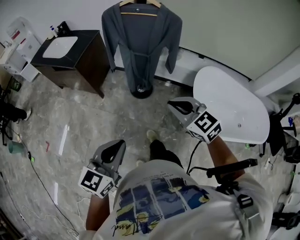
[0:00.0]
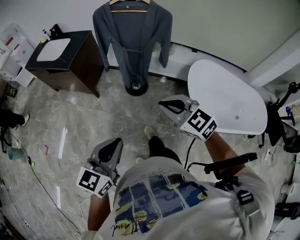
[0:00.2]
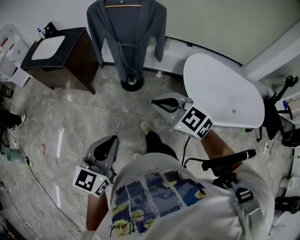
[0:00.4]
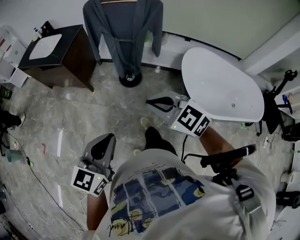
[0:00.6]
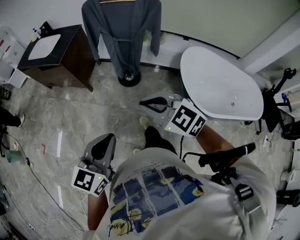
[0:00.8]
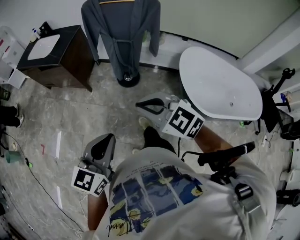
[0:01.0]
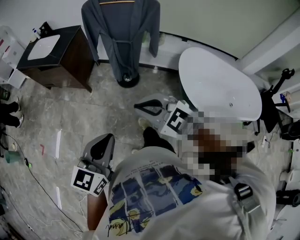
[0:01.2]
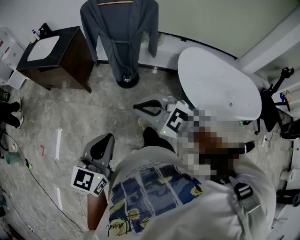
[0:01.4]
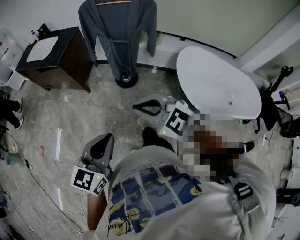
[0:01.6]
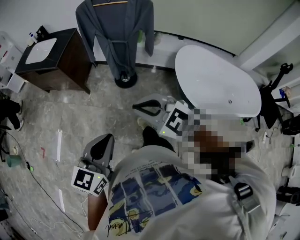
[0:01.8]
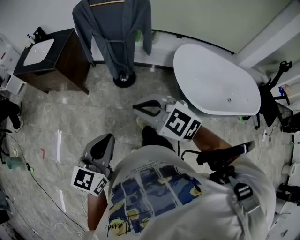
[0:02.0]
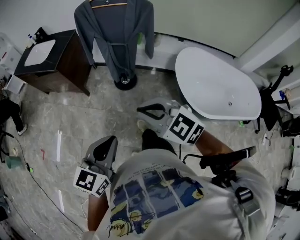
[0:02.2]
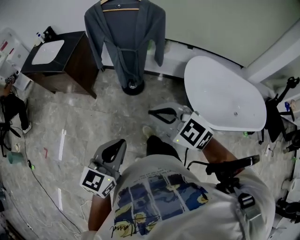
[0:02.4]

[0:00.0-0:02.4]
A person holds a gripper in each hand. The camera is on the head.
0.0 to 1.2 s: The right gripper goes about 10 cm to the left and backward.
1.2 to 2.4 s: The right gripper shifts approximately 5 cm to the right, while the left gripper moves approximately 5 cm.

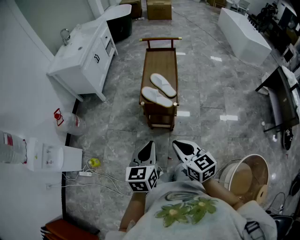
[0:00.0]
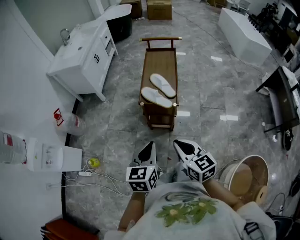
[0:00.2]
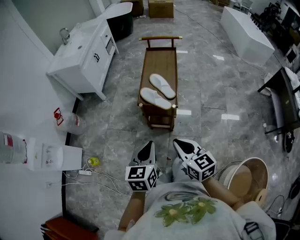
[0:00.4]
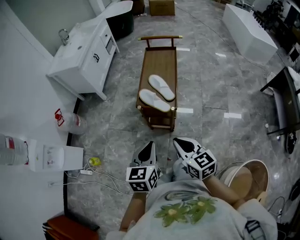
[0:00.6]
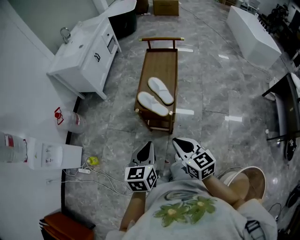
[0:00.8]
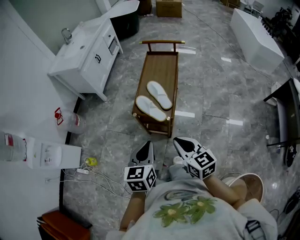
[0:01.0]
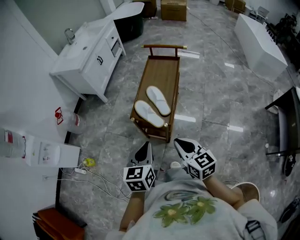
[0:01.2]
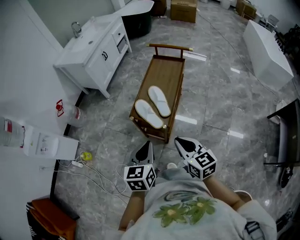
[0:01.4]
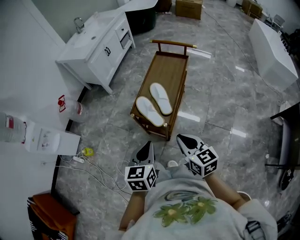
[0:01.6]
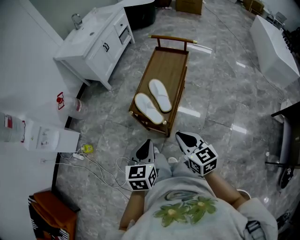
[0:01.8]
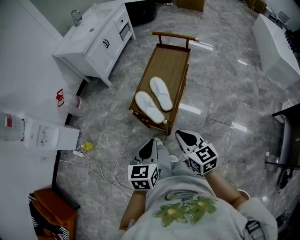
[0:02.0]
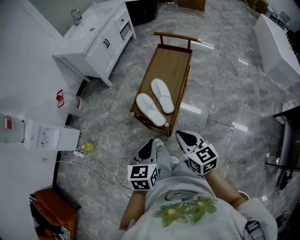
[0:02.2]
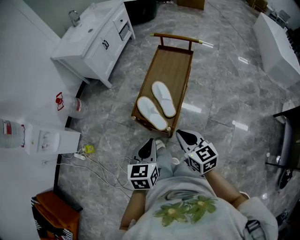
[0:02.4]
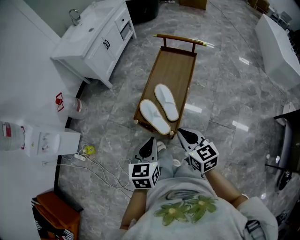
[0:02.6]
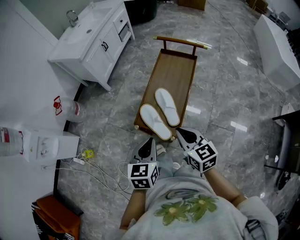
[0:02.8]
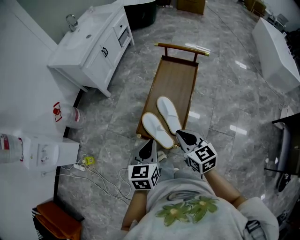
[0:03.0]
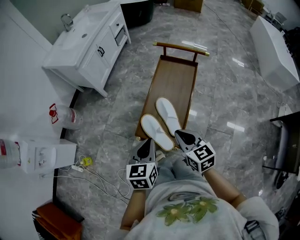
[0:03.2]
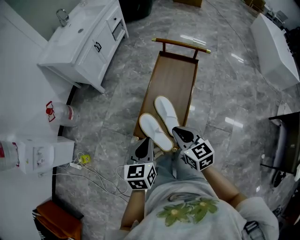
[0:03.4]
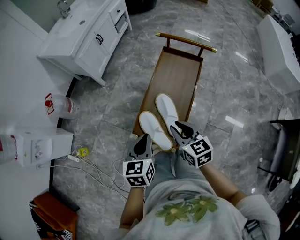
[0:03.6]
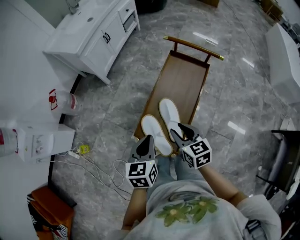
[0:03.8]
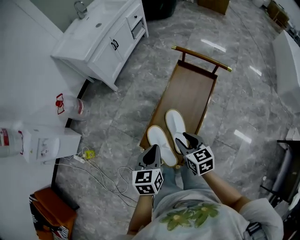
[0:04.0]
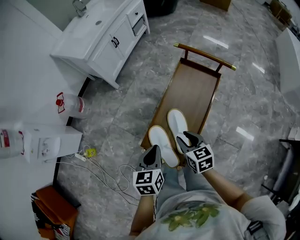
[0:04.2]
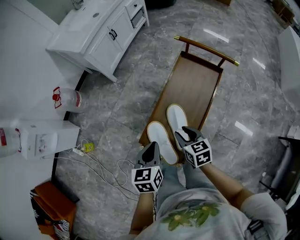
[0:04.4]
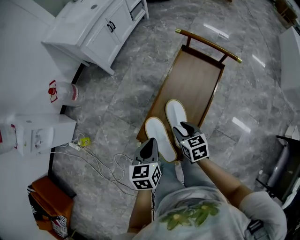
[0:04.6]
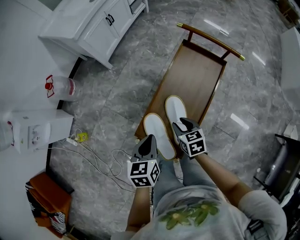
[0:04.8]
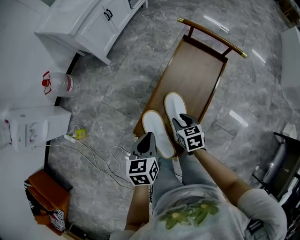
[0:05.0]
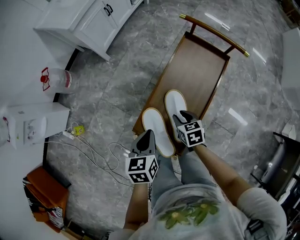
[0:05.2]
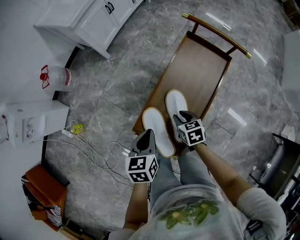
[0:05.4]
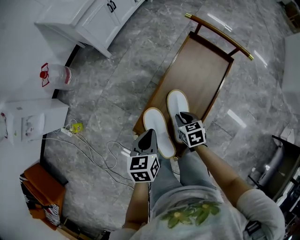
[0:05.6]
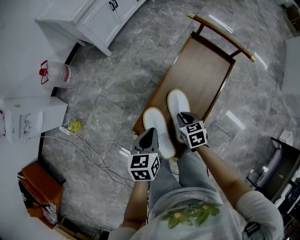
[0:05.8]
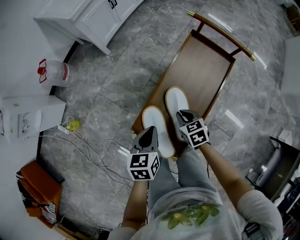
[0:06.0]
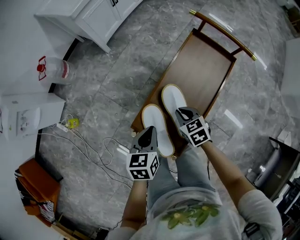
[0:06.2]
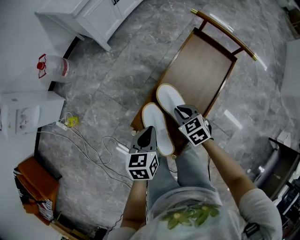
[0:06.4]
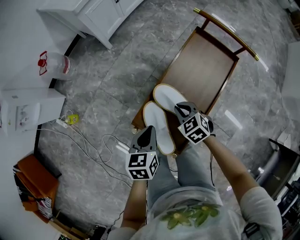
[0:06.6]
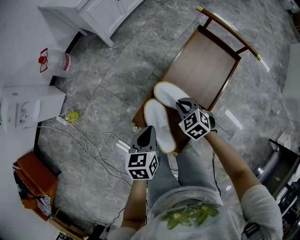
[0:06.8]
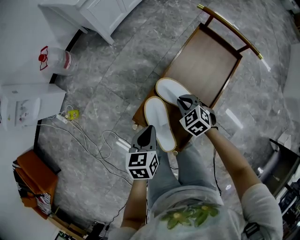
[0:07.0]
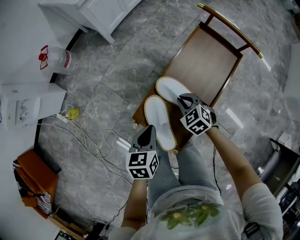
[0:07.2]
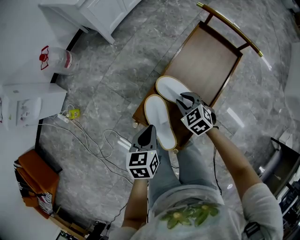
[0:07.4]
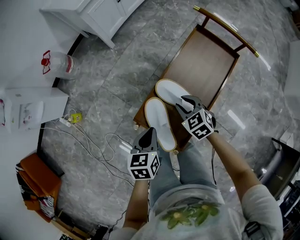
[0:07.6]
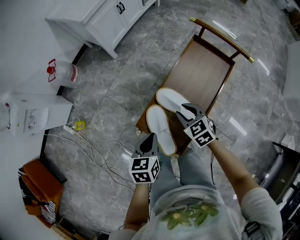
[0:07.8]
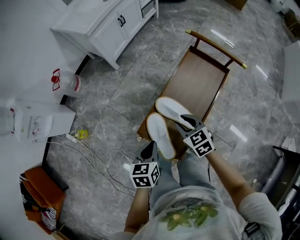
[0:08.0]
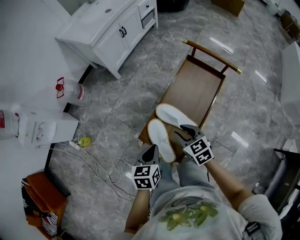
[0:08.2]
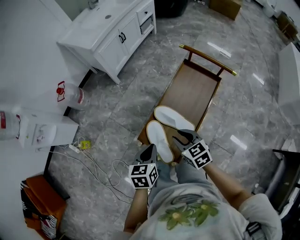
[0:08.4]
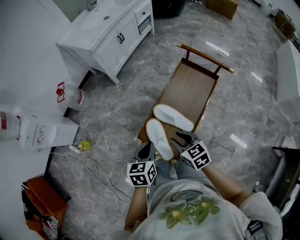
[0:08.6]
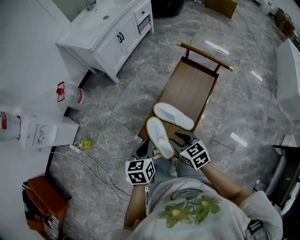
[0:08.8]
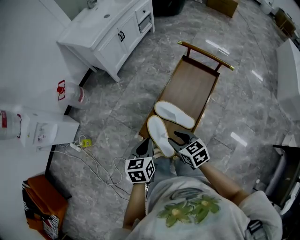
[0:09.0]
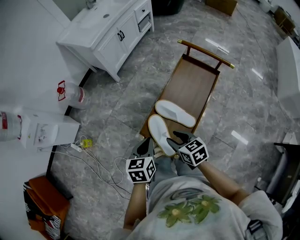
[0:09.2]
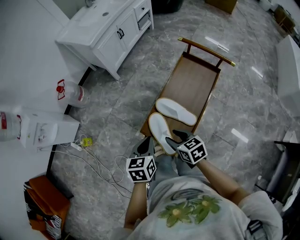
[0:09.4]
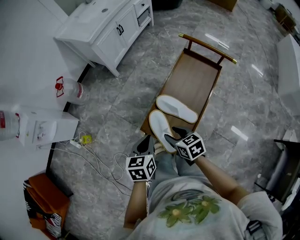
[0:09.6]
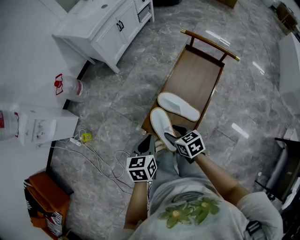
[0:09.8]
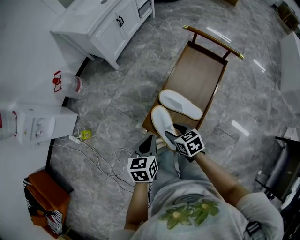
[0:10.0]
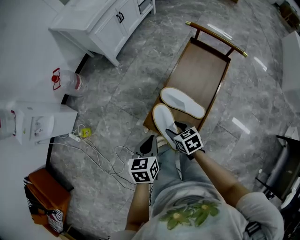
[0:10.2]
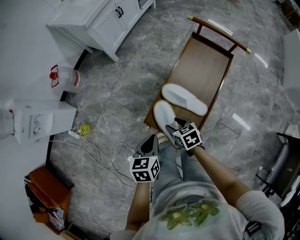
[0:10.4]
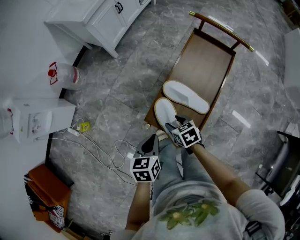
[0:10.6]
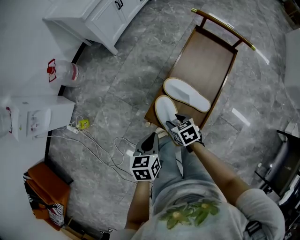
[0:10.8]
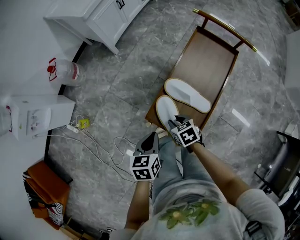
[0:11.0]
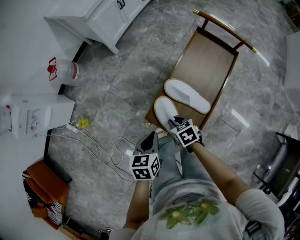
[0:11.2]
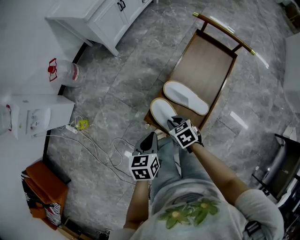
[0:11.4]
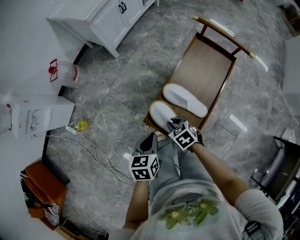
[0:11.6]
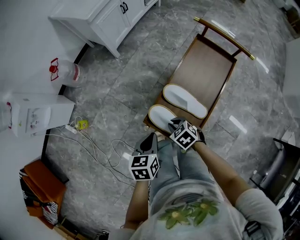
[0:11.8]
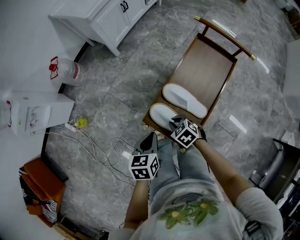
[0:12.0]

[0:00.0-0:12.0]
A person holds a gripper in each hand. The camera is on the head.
0.0 to 1.6 s: The grippers both shift to the right and forward by roughly 20 cm.
1.6 to 3.0 s: The two grippers go approximately 20 cm forward.
3.0 to 4.4 s: The right gripper moves downward and forward, approximately 20 cm, and opens its fingers. The left gripper moves forward and downward, about 15 cm.
4.4 to 6.0 s: The grippers both shift downward by some 10 cm. The right gripper closes its fingers.
6.0 to 7.6 s: The right gripper turns by some 20 degrees, and opens its fingers.
7.6 to 9.0 s: The left gripper moves upward, approximately 10 cm; the right gripper heads upward and backward, covering about 15 cm, and turns by some 30 degrees.
9.0 to 10.4 s: The right gripper heads downward, covering roughly 15 cm. Meanwhile the left gripper is displaced downward by about 5 cm.
10.4 to 12.0 s: The right gripper rotates roughly 30 degrees, and closes up.

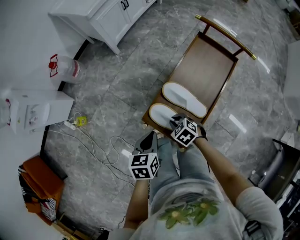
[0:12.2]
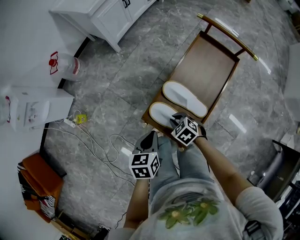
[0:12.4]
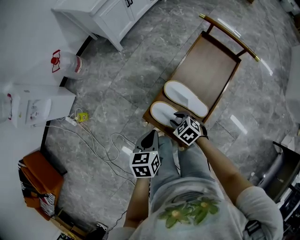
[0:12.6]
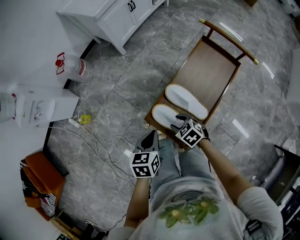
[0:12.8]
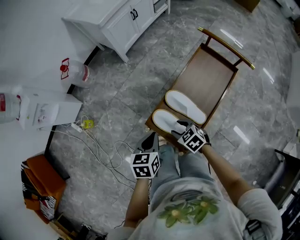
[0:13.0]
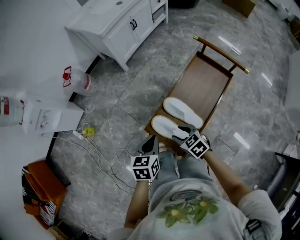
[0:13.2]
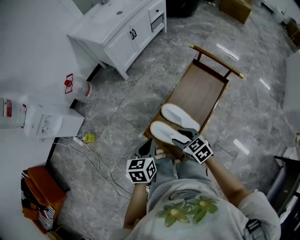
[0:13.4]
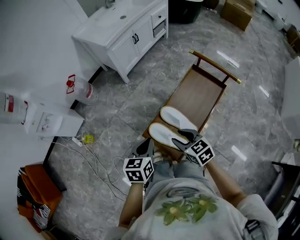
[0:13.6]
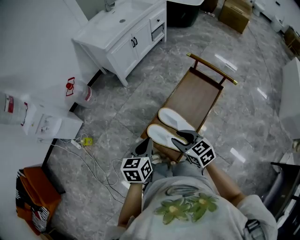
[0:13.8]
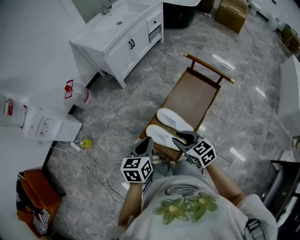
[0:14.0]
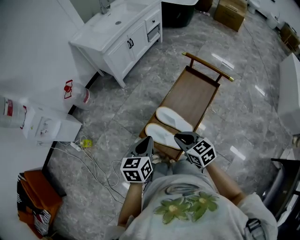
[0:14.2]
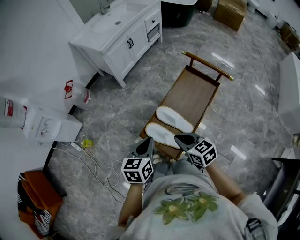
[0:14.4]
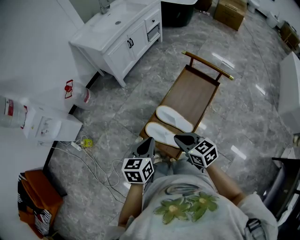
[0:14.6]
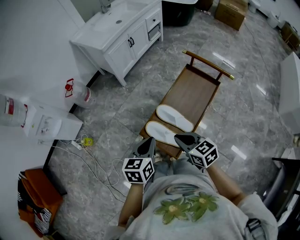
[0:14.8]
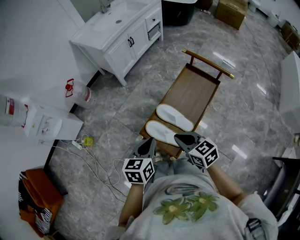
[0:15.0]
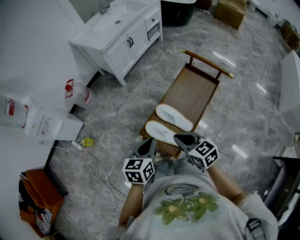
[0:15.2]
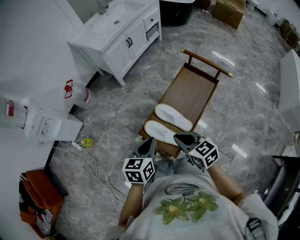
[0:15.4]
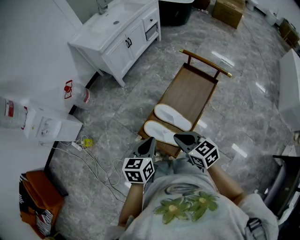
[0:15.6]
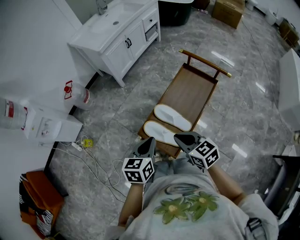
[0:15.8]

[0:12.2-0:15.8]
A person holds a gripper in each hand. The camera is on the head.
12.2 to 14.0 s: The right gripper heads upward, covering some 20 cm, tilts its fingers about 30 degrees upward, and opens, then closes once more, while the left gripper goes some 15 cm upward.
14.0 to 15.8 s: The right gripper closes its fingers.

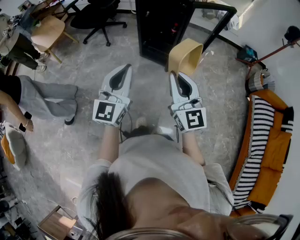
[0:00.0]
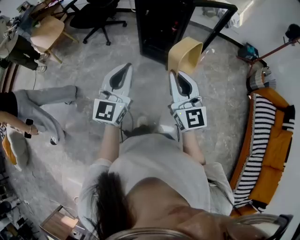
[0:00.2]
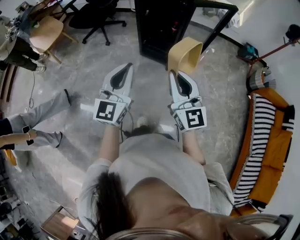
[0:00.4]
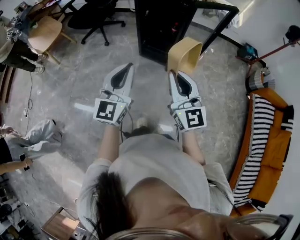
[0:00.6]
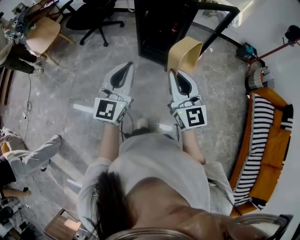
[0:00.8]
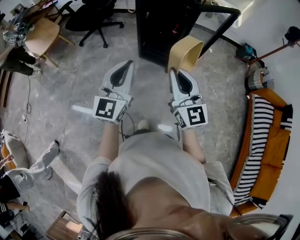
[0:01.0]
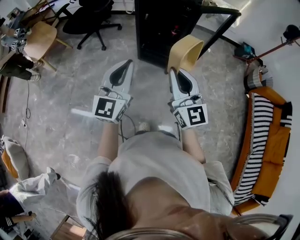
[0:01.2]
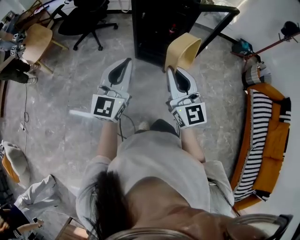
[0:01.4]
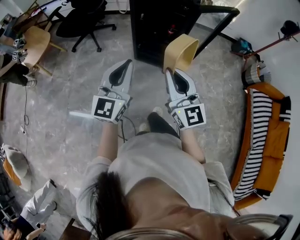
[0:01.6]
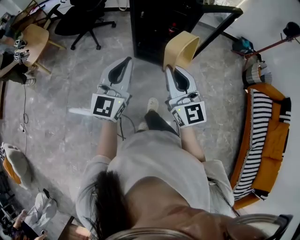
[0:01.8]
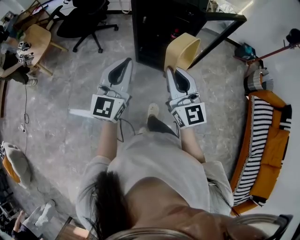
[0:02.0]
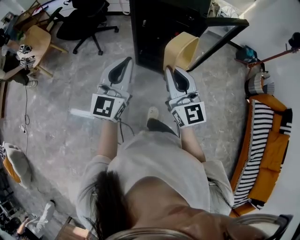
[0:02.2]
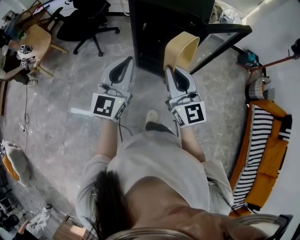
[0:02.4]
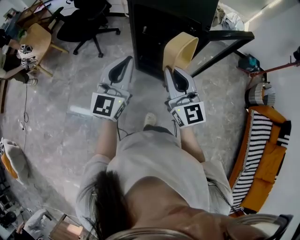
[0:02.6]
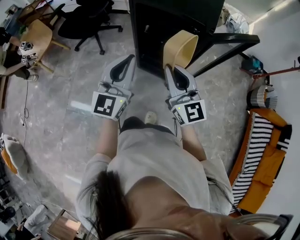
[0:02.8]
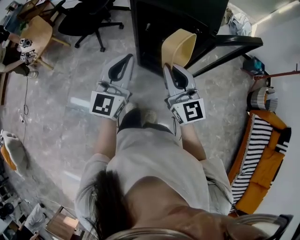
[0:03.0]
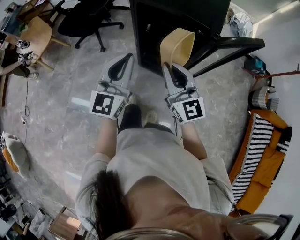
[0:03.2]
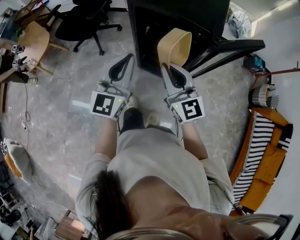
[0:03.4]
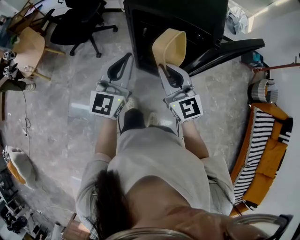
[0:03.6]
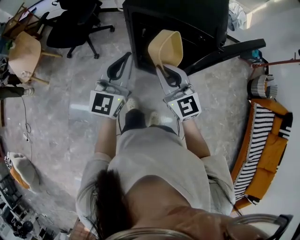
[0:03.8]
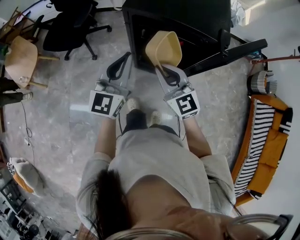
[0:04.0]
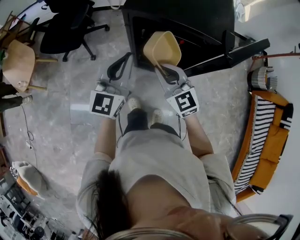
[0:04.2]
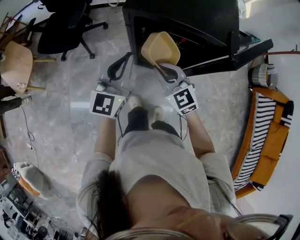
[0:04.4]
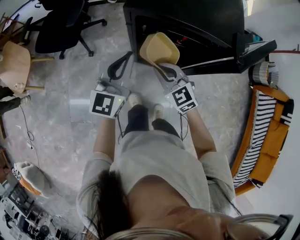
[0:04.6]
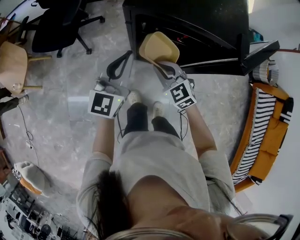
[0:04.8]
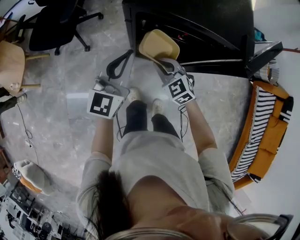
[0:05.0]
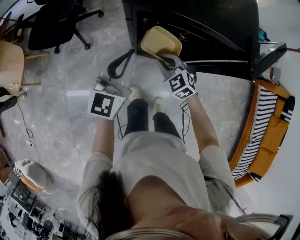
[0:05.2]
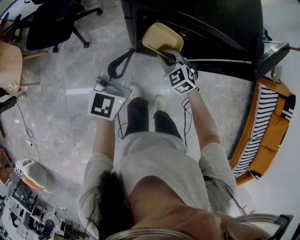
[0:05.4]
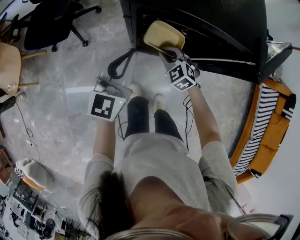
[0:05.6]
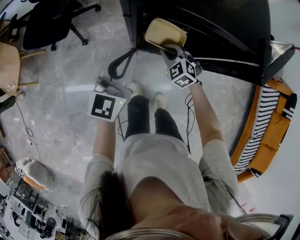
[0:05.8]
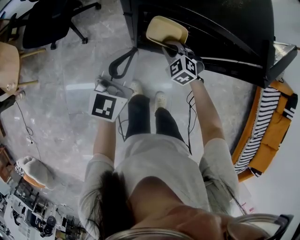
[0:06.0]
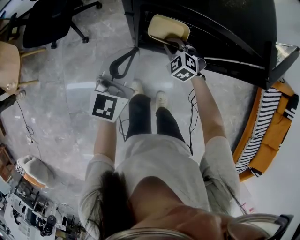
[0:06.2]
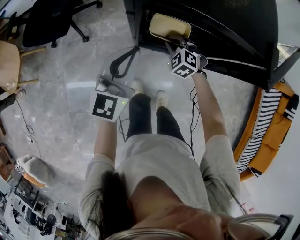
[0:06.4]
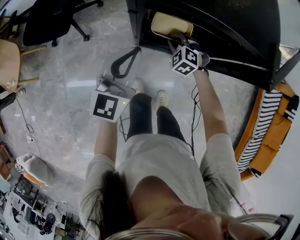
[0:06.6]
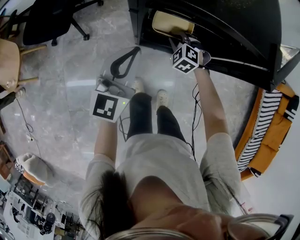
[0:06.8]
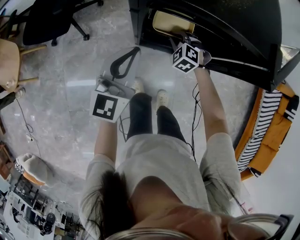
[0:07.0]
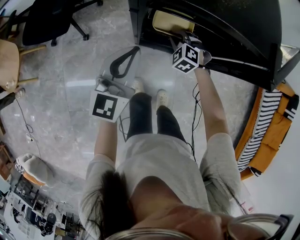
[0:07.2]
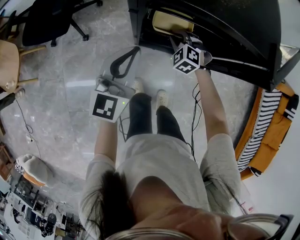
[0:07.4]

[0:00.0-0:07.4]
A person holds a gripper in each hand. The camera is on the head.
0.0 to 1.4 s: Both grippers move forward and to the left, about 15 cm.
1.4 to 3.0 s: Both grippers move forward, roughly 25 cm.
3.0 to 4.4 s: The left gripper travels forward by approximately 20 cm; the right gripper moves forward, downward and to the left, approximately 25 cm, and swivels some 30 degrees.
4.4 to 6.0 s: The left gripper is displaced downward and forward by some 10 cm. Meanwhile the right gripper heads downward and forward, covering about 25 cm, and swivels approximately 30 degrees.
6.0 to 7.4 s: The grippers move only a little.
